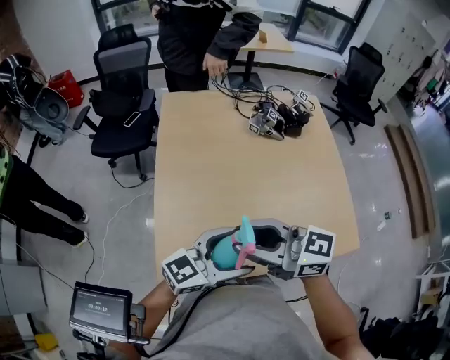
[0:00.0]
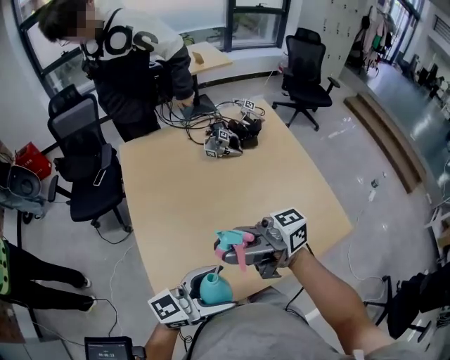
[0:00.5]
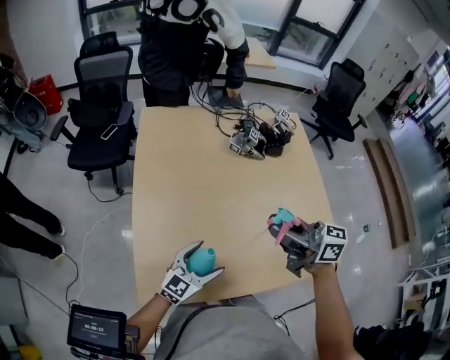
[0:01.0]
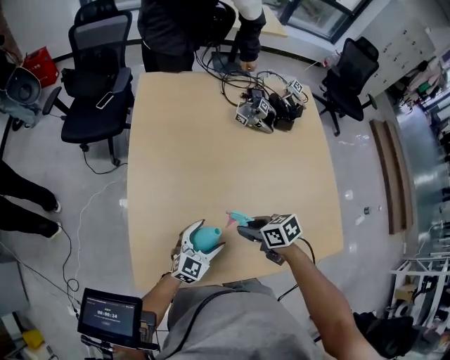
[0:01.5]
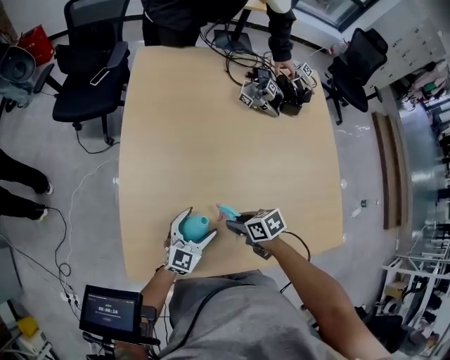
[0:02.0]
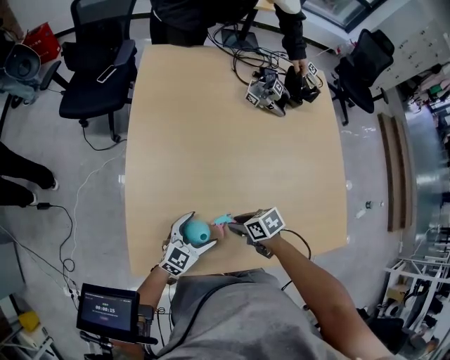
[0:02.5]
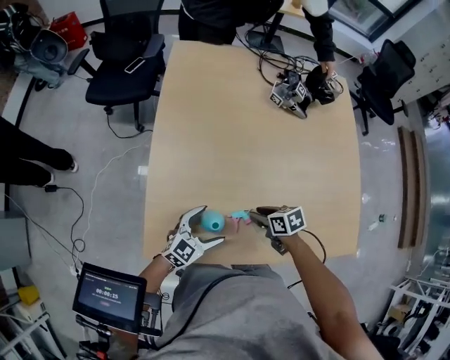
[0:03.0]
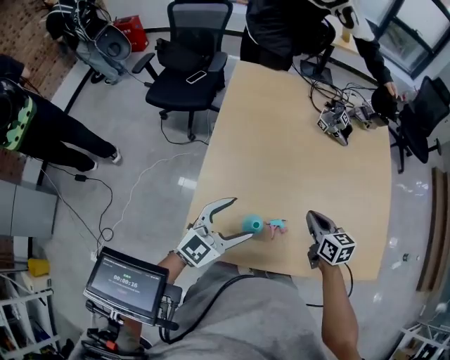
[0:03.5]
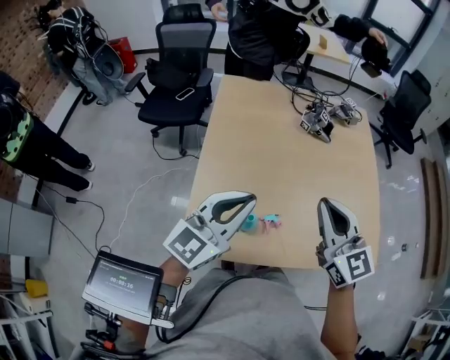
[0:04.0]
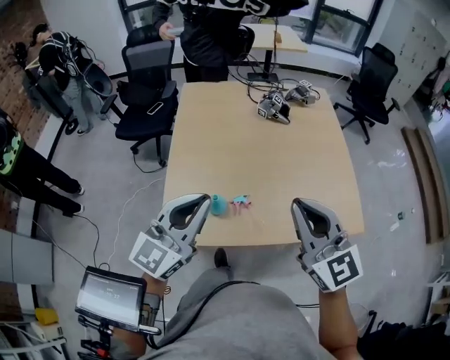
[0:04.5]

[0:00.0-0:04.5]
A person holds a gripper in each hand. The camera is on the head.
0:00.0 to 0:02.0: The grippers both shift downward by roughly 30 cm. The right gripper angles its fingers downward, by approximately 50 degrees, while the left gripper swivels approximately 40 degrees.
0:02.0 to 0:04.5: Both grippers move upward, roughly 40 cm. The left gripper rotates approximately 20 degrees, and closes. The right gripper angles its fingers upward, by some 50 degrees, and closes.

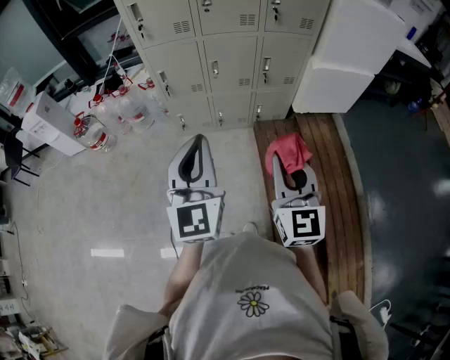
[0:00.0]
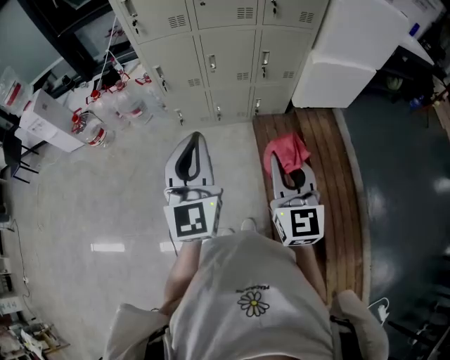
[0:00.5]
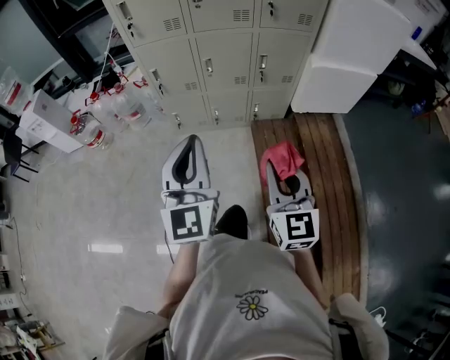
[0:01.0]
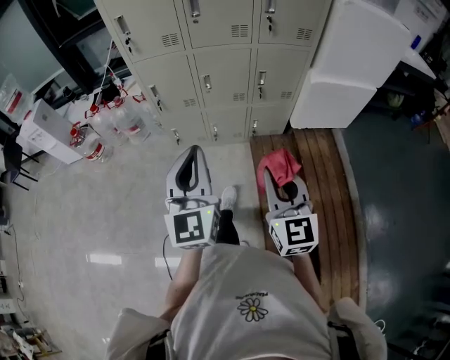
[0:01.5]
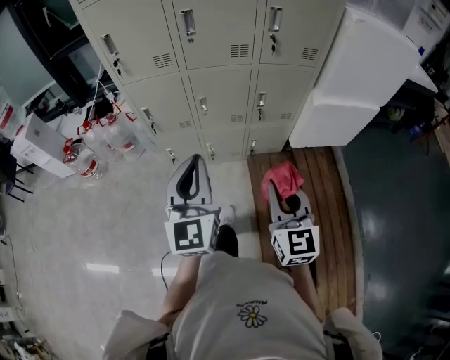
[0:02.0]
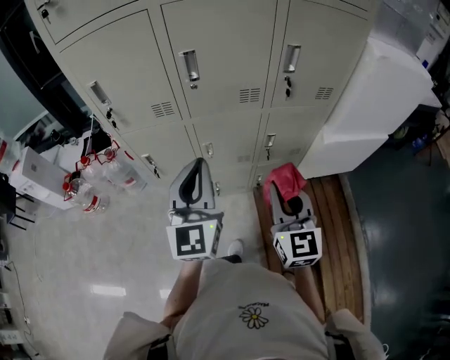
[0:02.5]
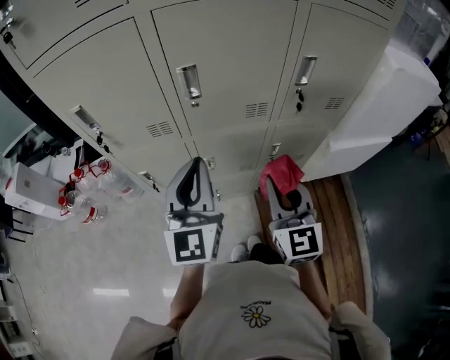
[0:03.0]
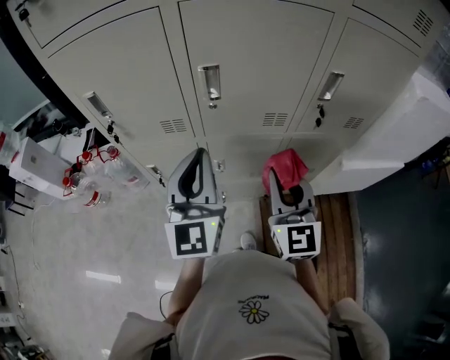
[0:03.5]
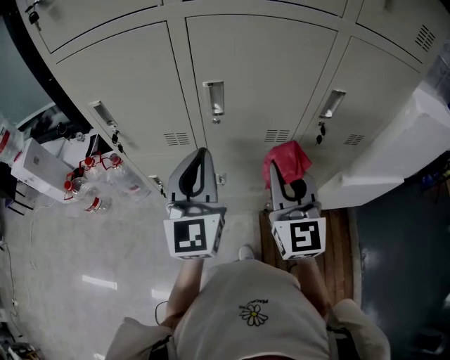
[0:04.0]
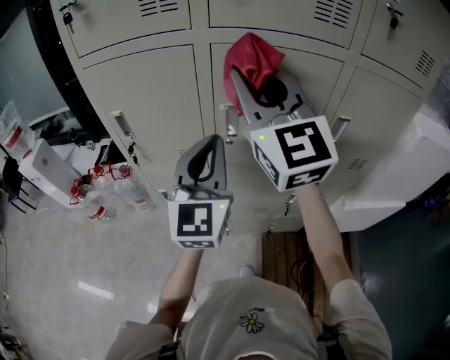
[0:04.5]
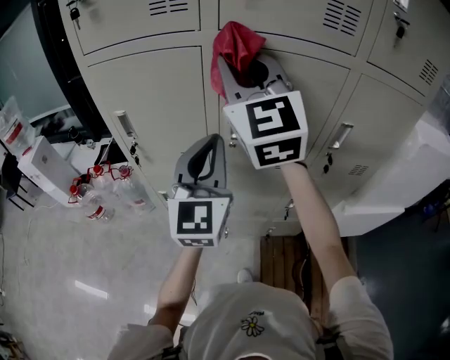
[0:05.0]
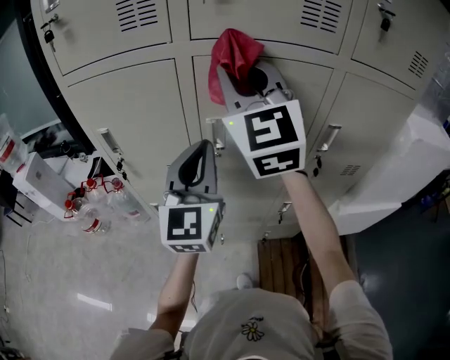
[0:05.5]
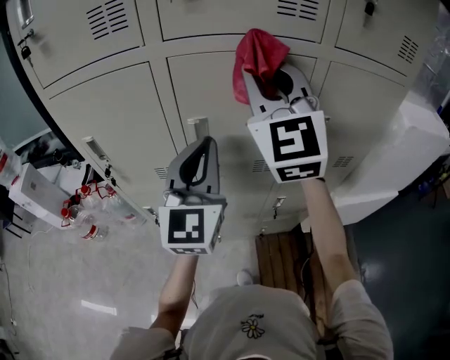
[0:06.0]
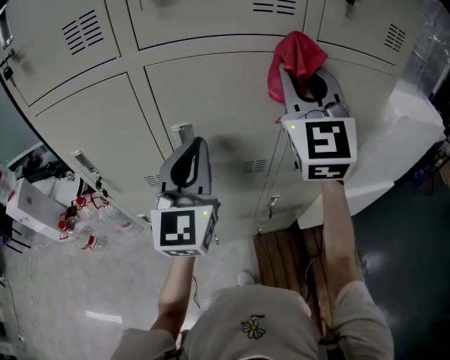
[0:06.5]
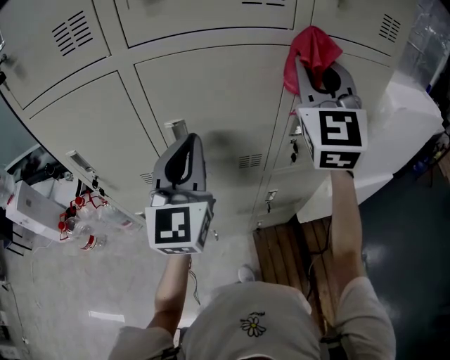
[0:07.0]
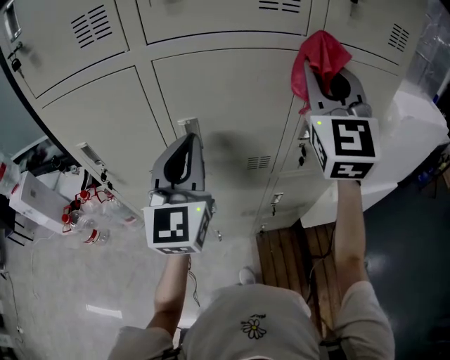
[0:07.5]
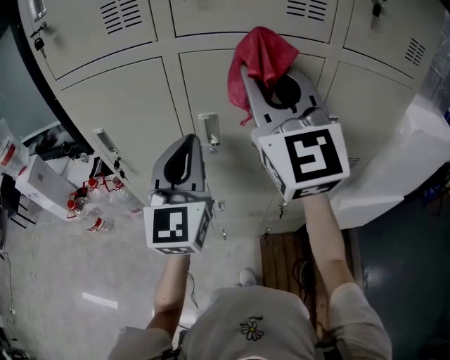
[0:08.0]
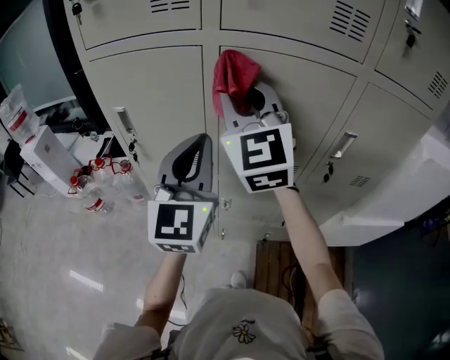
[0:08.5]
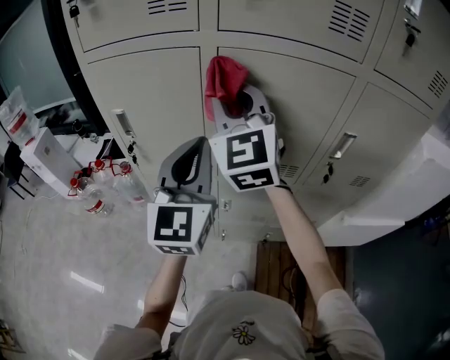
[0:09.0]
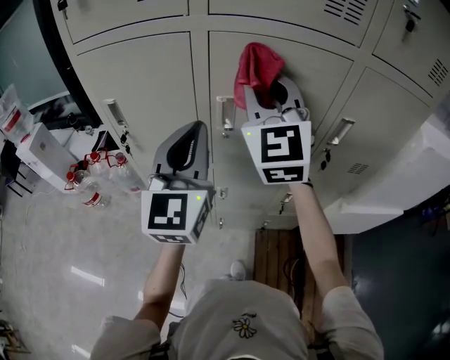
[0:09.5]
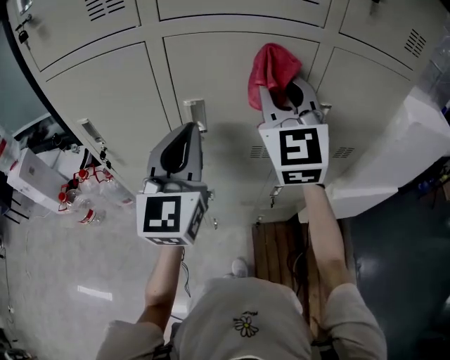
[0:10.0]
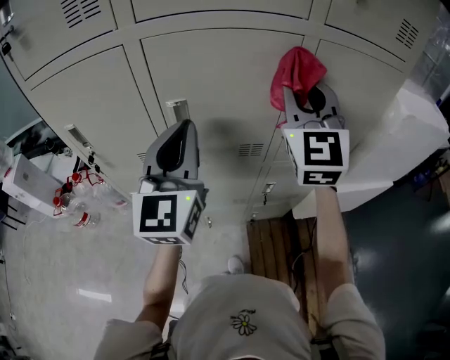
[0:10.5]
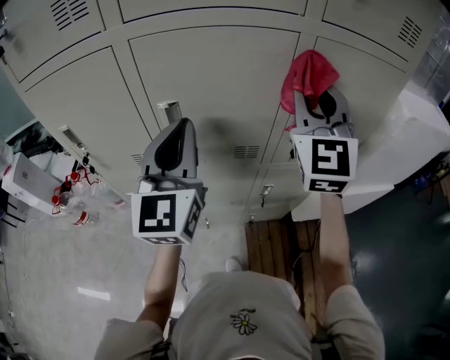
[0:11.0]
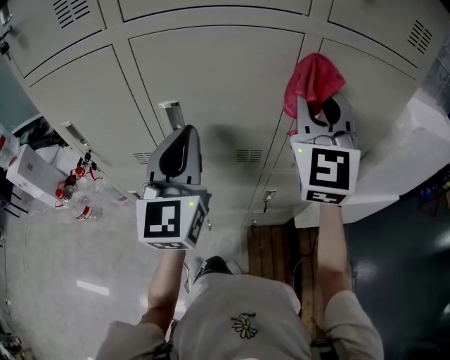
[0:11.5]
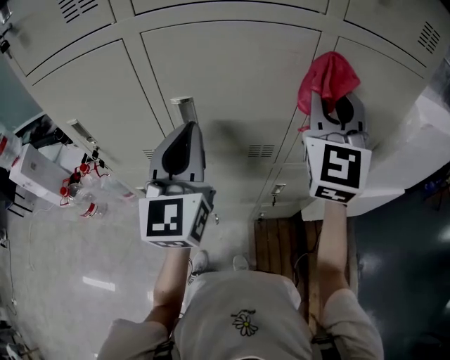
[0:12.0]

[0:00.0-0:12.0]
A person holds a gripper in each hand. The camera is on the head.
0:00.0 to 0:02.0: The two grippers go some 20 cm forward.
0:02.0 to 0:04.0: Both grippers travel together forward, approximately 35 cm.
0:04.0 to 0:06.0: The left gripper goes approximately 10 cm upward and to the right, while the right gripper shifts approximately 25 cm upward and forward, and turns by approximately 20 degrees.
0:06.0 to 0:08.0: The right gripper moves some 15 cm to the right and comes back.
0:08.0 to 0:10.0: The right gripper goes approximately 10 cm downward and to the right.
0:10.0 to 0:12.0: The right gripper heads to the right, covering approximately 10 cm.

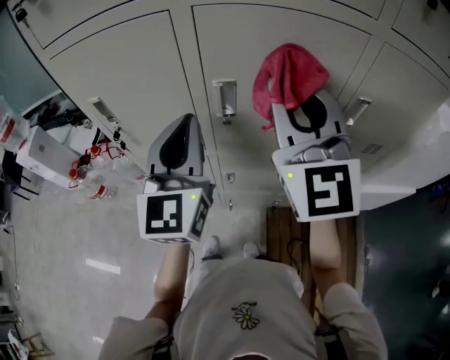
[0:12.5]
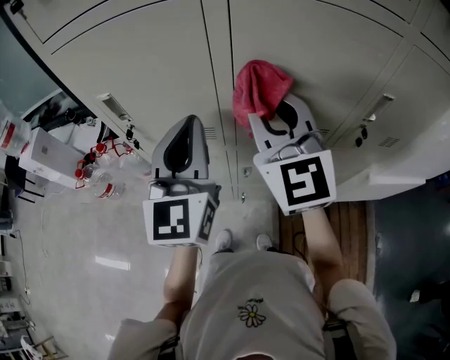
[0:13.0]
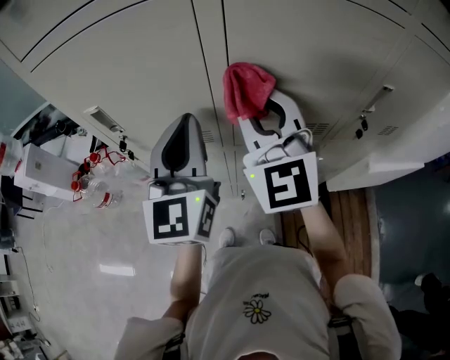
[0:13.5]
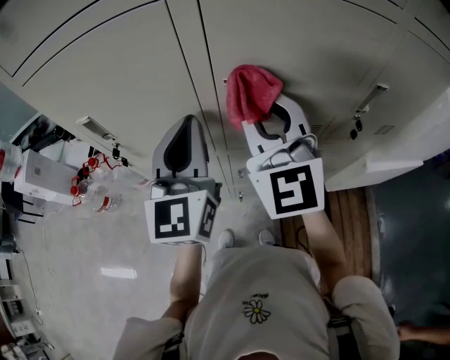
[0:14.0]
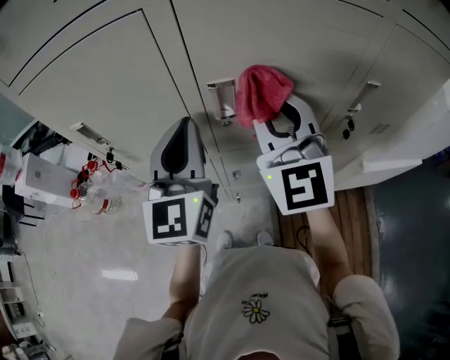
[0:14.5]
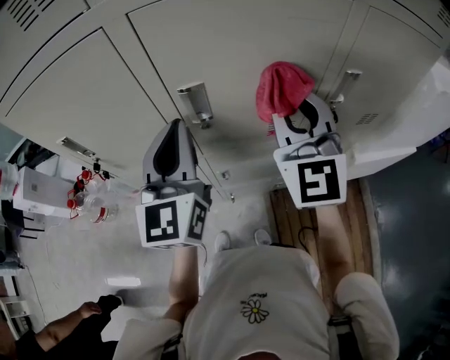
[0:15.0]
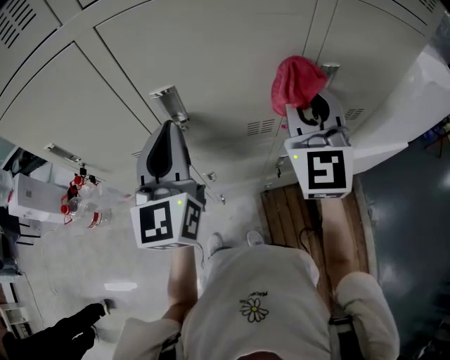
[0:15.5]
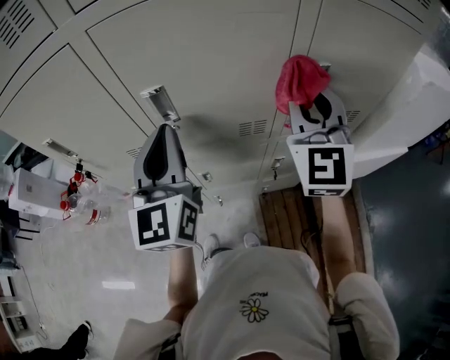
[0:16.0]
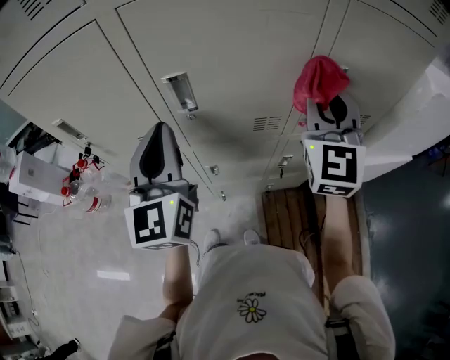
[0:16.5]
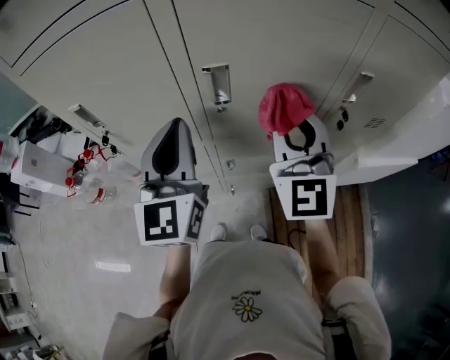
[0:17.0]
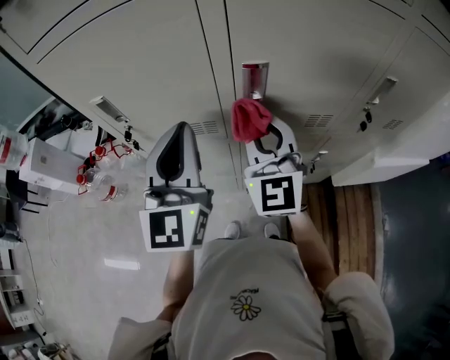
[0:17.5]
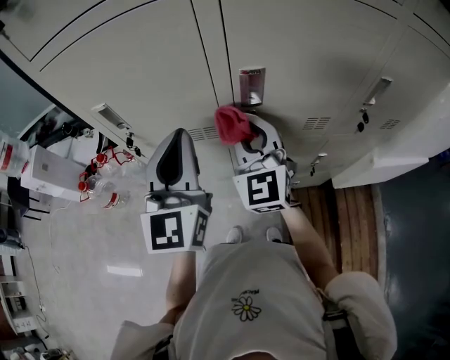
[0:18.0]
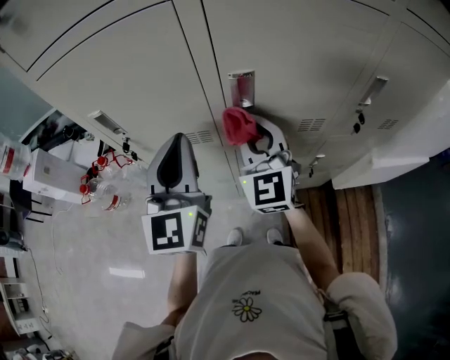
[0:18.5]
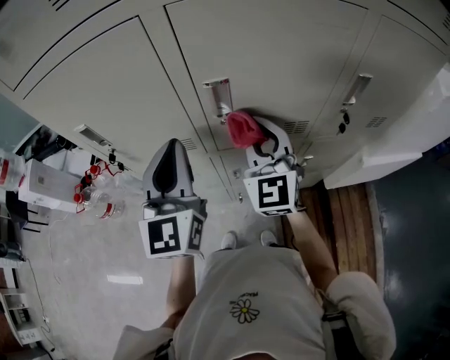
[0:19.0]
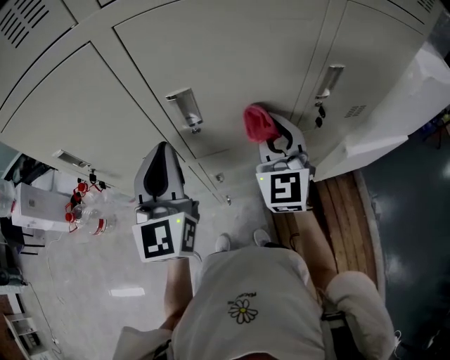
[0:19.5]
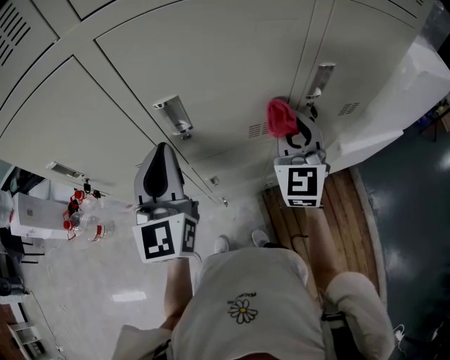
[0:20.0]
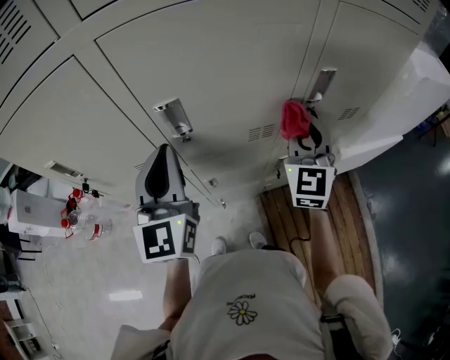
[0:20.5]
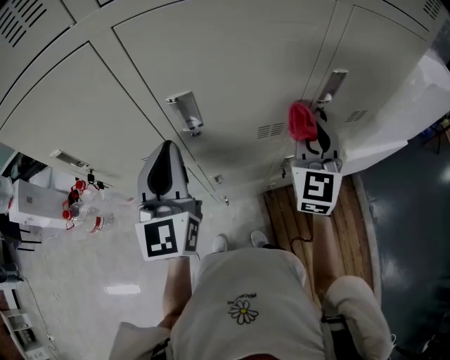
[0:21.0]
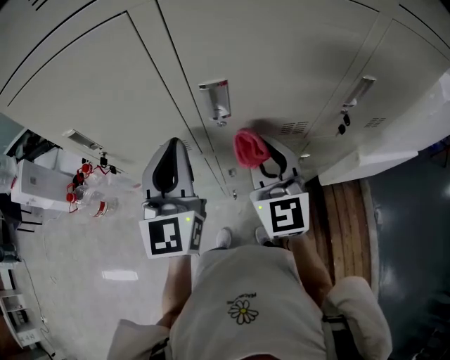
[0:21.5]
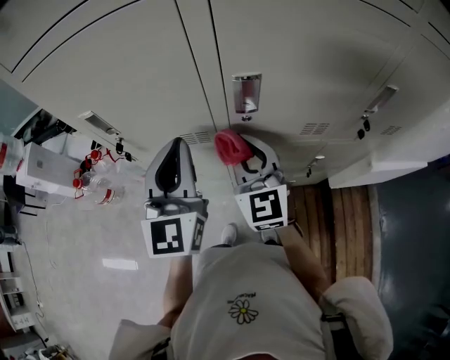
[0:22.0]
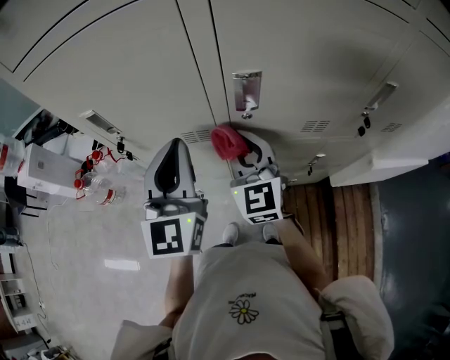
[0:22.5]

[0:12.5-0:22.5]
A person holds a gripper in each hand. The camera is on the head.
0:12.5 to 0:14.5: The left gripper moves about 5 cm, while the right gripper travels downward and forward by roughly 10 cm.
0:14.5 to 0:16.5: The right gripper heads to the right, covering approximately 20 cm.
0:16.5 to 0:18.5: The left gripper moves to the left, approximately 10 cm. The right gripper moves to the left and downward, about 25 cm.
0:18.5 to 0:20.5: The right gripper is displaced to the right by approximately 25 cm, and turns by about 30 degrees. The left gripper travels to the right by about 10 cm.
0:20.5 to 0:22.5: The right gripper shifts about 30 cm to the left, and turns by about 30 degrees. The left gripper heads to the left, covering roughly 10 cm.
